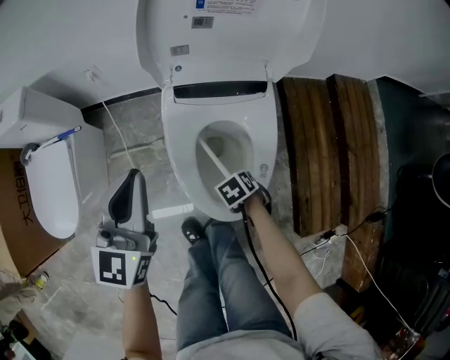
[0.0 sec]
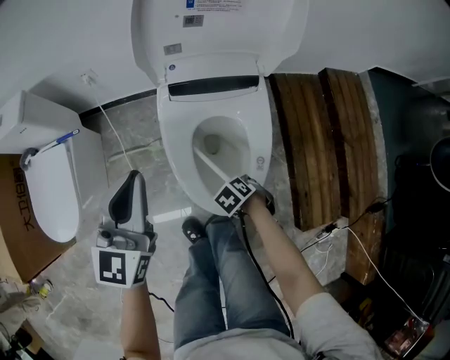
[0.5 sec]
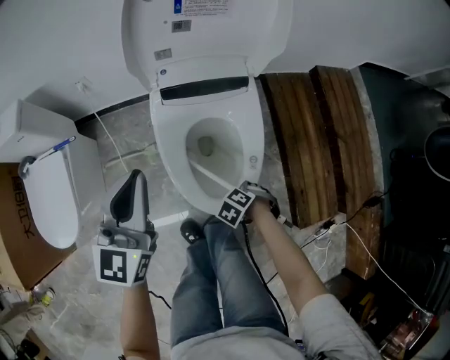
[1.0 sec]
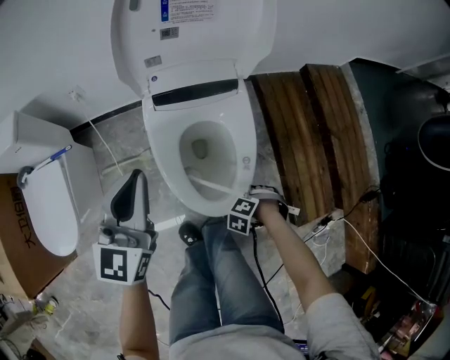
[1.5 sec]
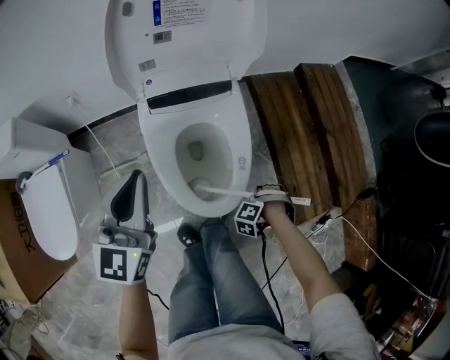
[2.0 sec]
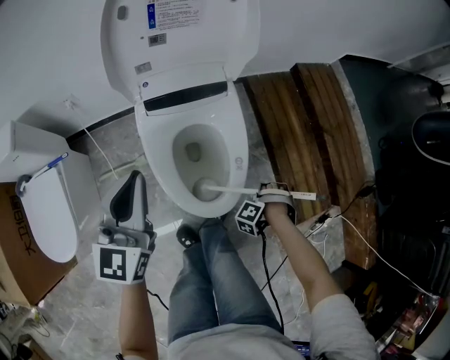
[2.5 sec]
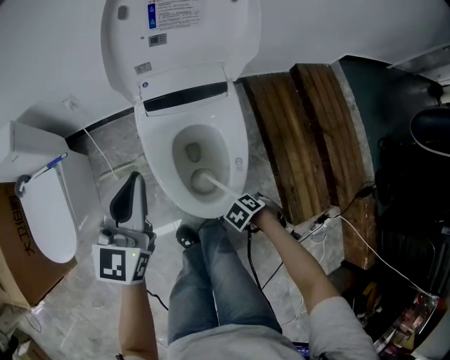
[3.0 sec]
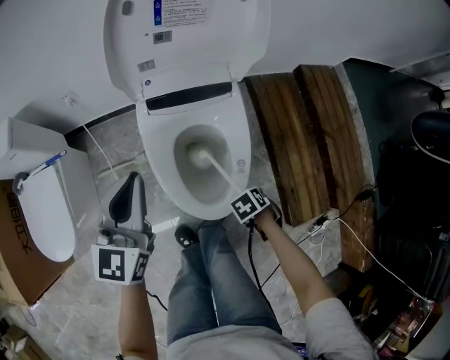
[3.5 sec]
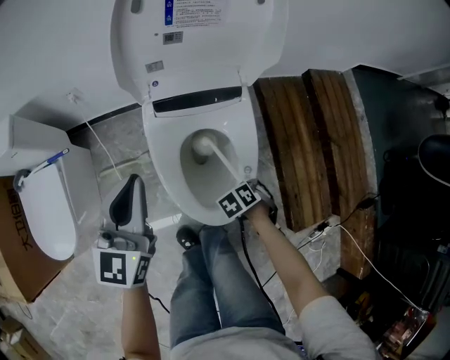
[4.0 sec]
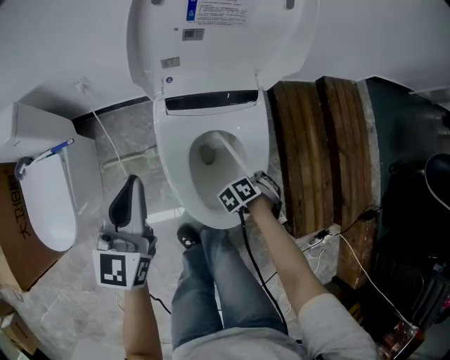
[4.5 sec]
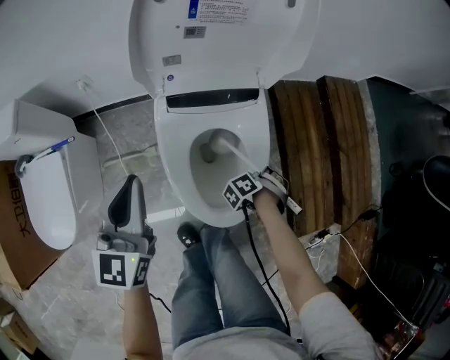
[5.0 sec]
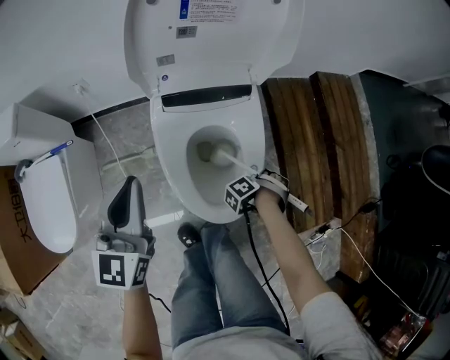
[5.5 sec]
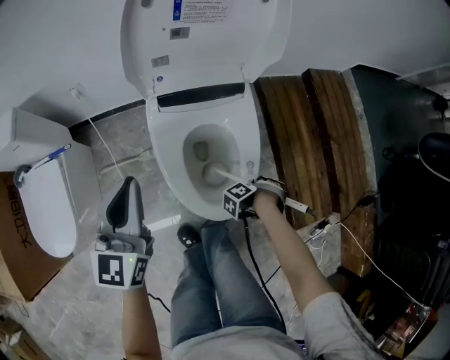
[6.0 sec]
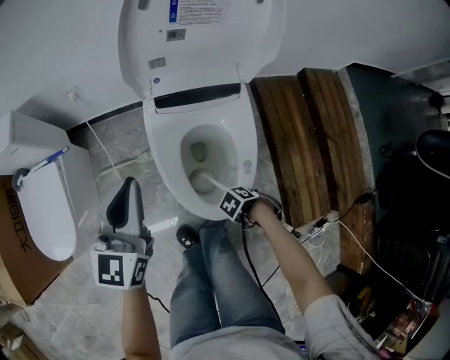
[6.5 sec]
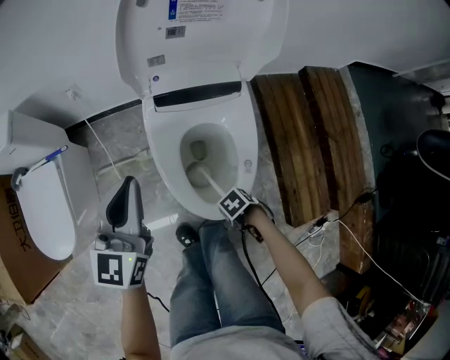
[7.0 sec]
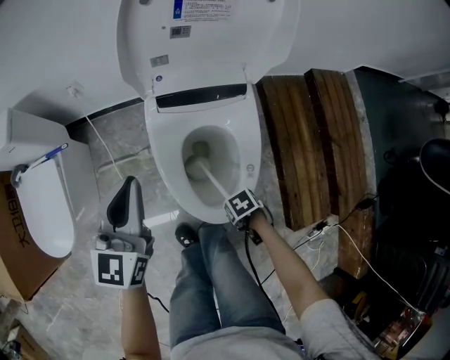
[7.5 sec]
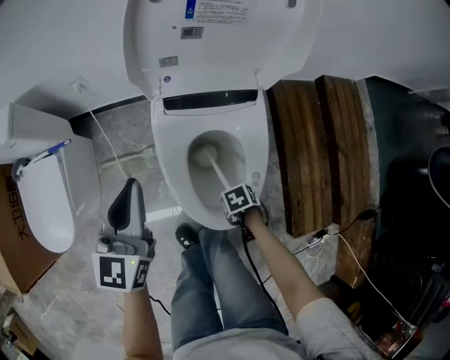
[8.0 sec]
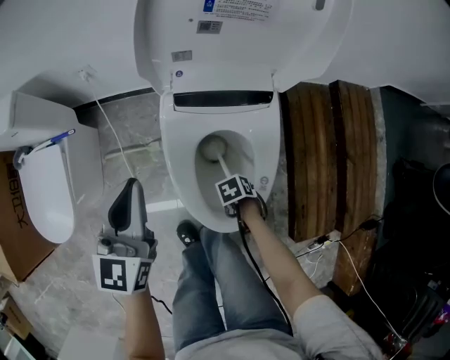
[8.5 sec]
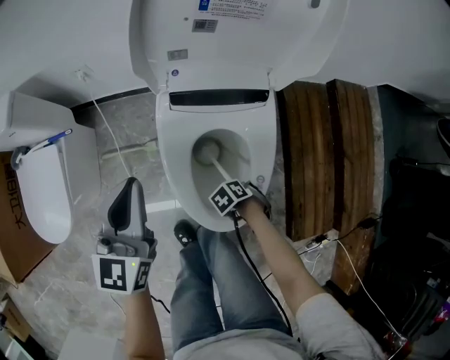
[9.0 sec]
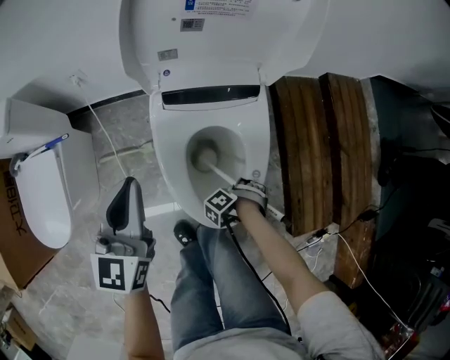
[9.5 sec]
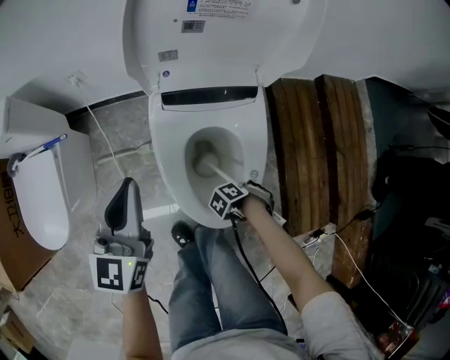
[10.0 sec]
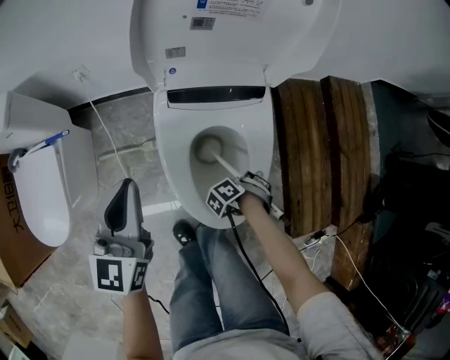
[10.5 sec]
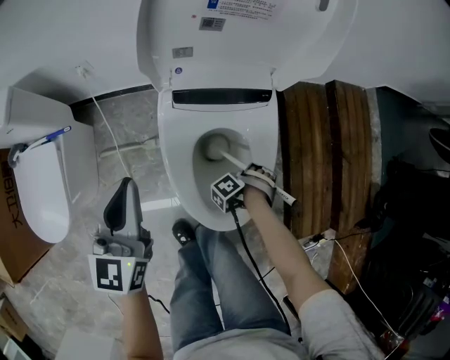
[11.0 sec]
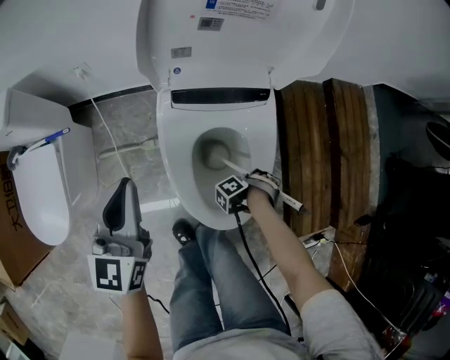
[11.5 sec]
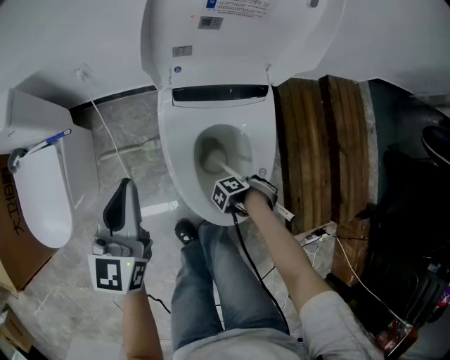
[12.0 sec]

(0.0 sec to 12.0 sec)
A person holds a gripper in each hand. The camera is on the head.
0.0 sec - 2.0 sec: The left gripper changes place by some 5 cm.

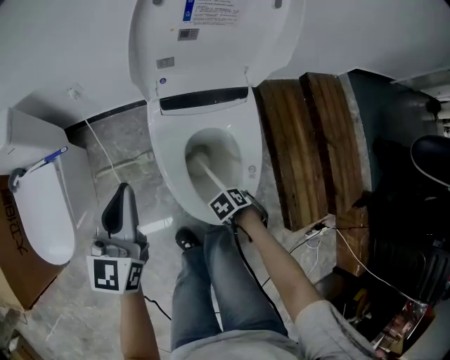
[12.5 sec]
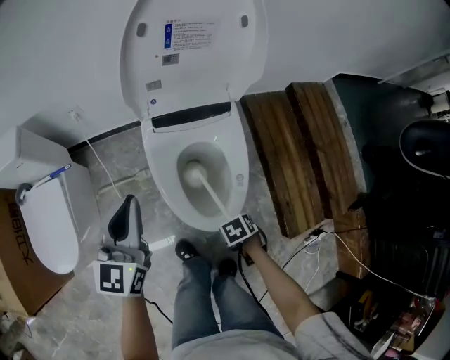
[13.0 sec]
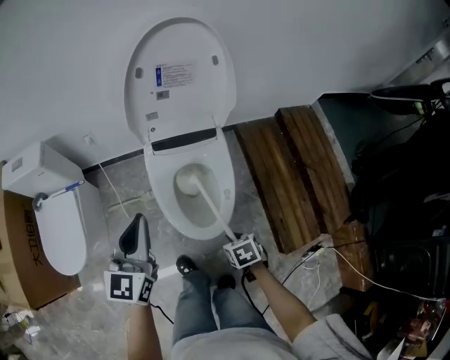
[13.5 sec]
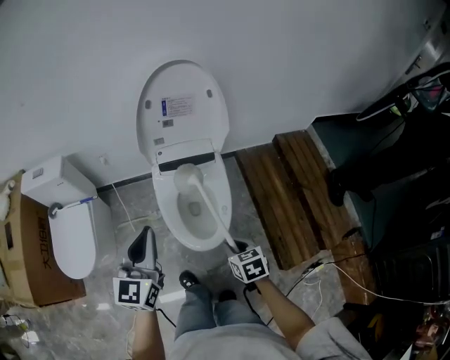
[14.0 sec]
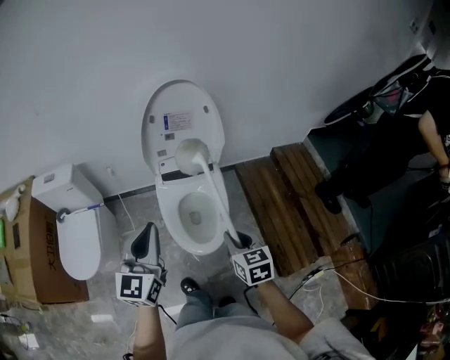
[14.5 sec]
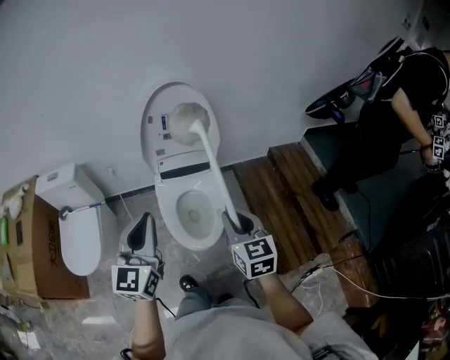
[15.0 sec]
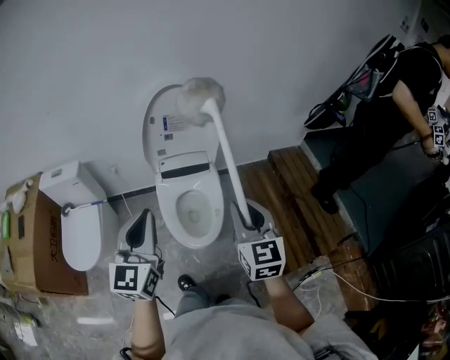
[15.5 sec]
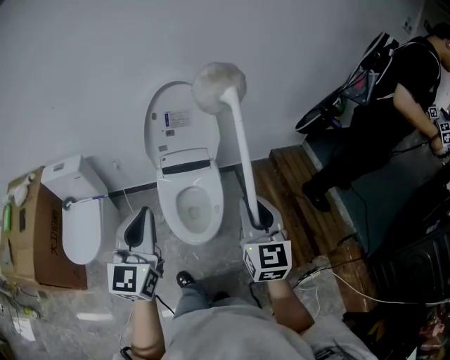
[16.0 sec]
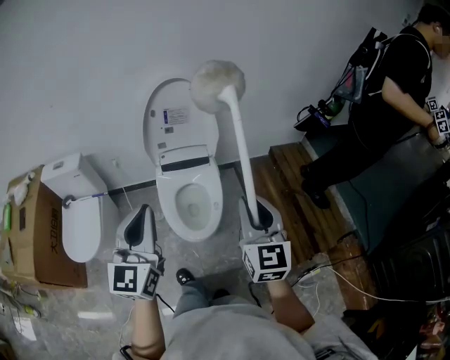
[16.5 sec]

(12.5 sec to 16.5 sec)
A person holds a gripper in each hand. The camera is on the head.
12.5 sec - 14.5 sec: The left gripper moves upward, roughly 25 cm.
14.5 sec - 16.5 sec: The left gripper shifts by some 15 cm.

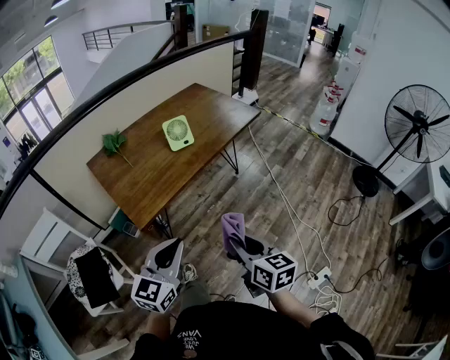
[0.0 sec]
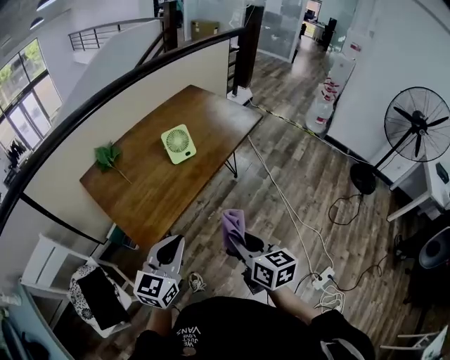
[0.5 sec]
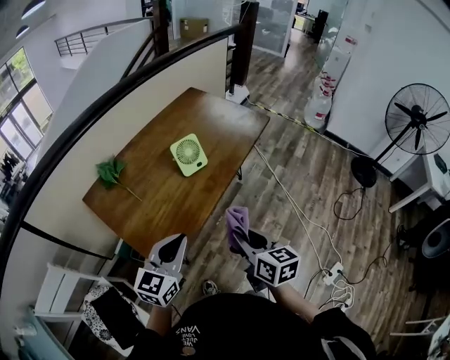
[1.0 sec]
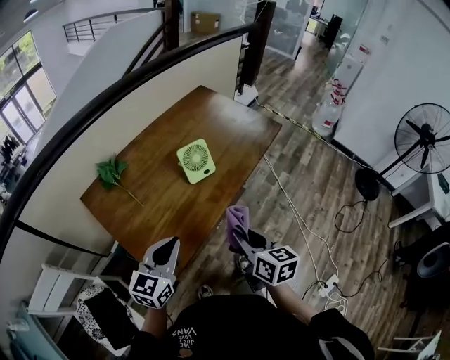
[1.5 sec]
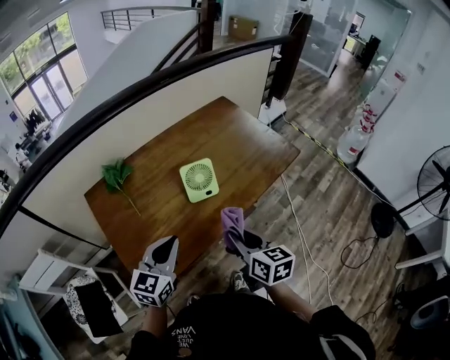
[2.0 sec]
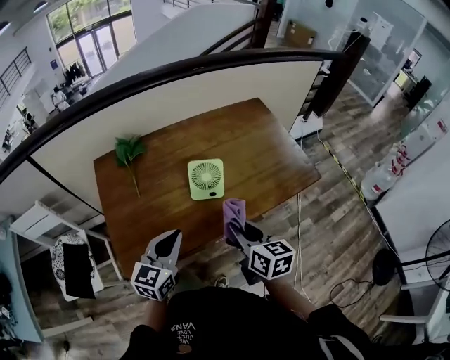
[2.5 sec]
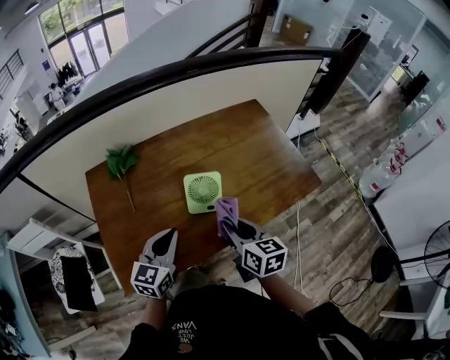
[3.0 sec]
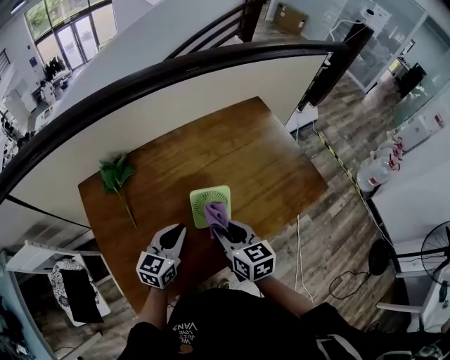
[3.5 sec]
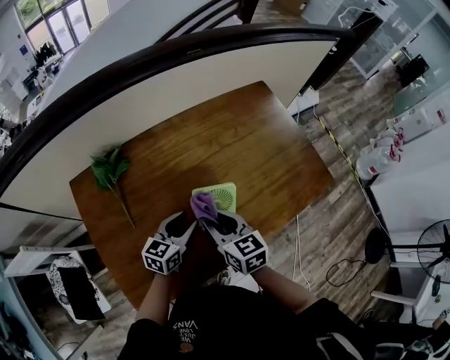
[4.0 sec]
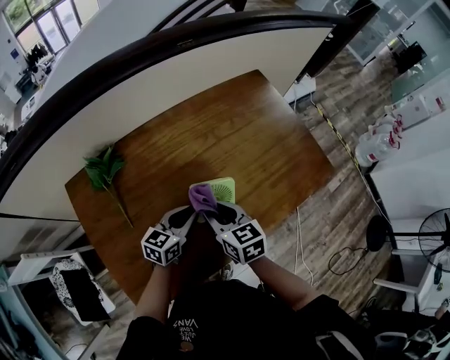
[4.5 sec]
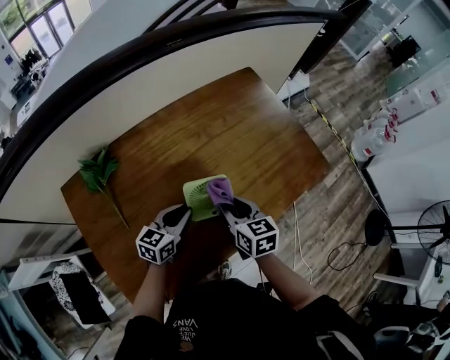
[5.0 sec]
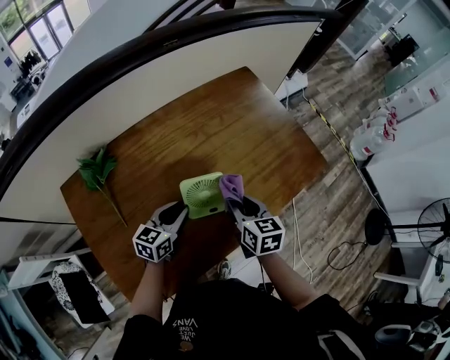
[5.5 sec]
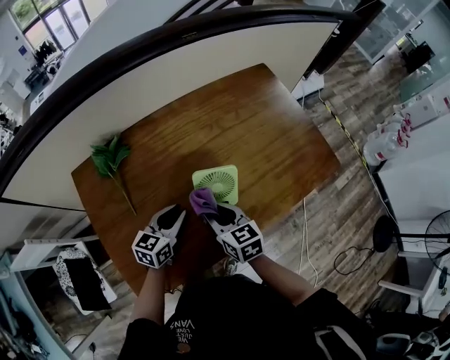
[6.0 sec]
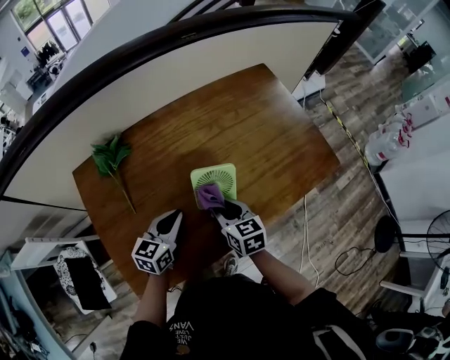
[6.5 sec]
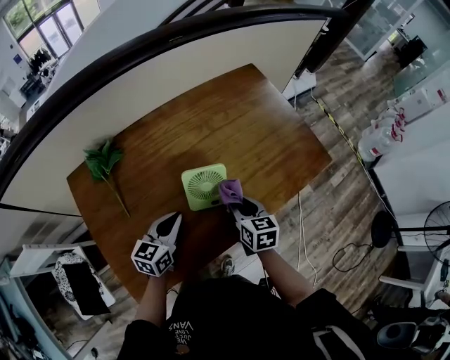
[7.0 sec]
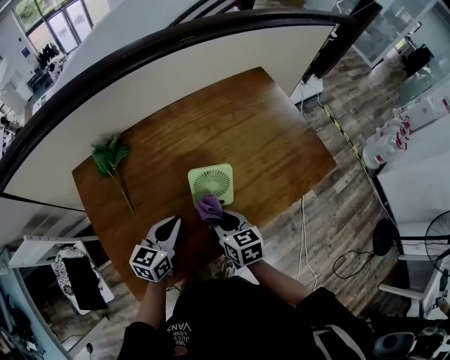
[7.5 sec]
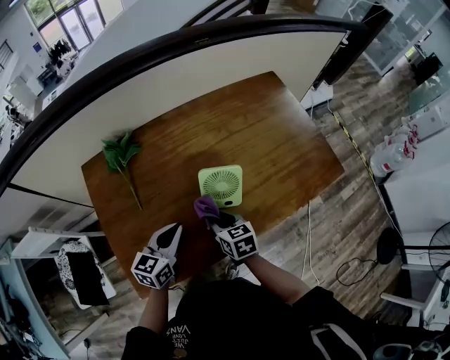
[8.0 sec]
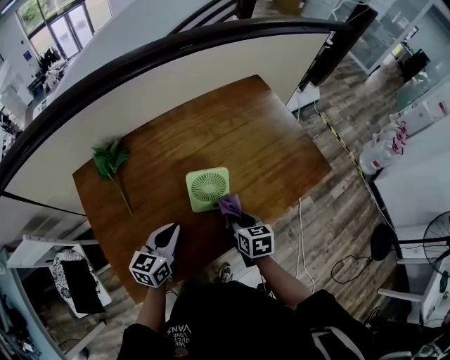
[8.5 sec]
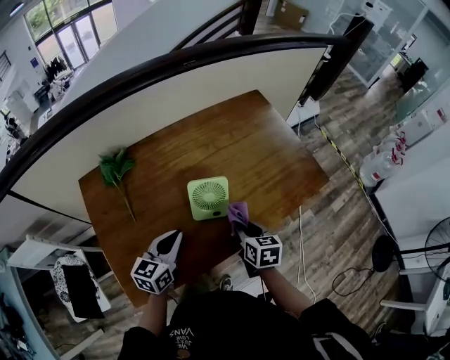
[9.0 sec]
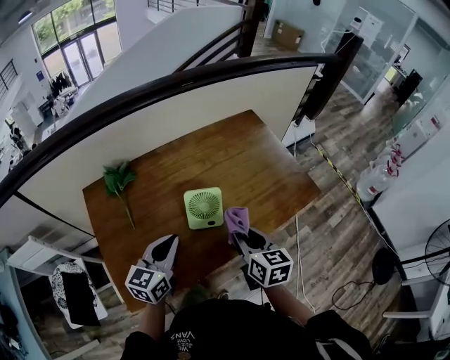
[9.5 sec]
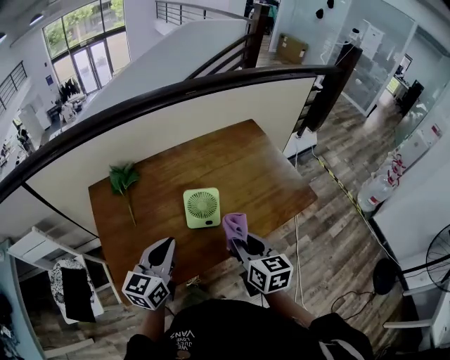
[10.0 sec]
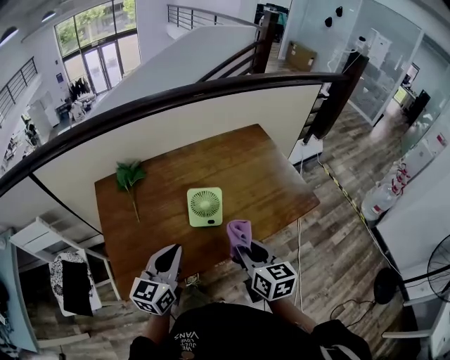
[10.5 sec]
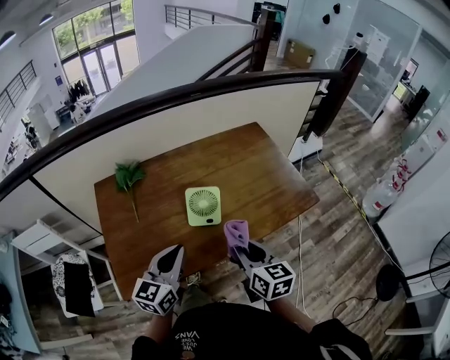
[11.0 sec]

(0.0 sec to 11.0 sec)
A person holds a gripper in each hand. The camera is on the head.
0.0 sec - 2.0 sec: Both grippers travel together forward, about 35 cm.
2.0 sec - 3.5 sec: The left gripper travels forward and downward by approximately 20 cm, while the right gripper moves forward, roughly 20 cm.
3.5 sec - 5.5 sec: The left gripper travels downward and forward by some 10 cm; the right gripper travels to the right, forward and downward by about 10 cm.
5.5 sec - 7.5 sec: The left gripper is displaced backward by some 5 cm, while the right gripper swings left and right, about 10 cm each way, with 2 reversals.
7.5 sec - 9.0 sec: The right gripper shifts about 10 cm to the right.
9.0 sec - 11.0 sec: The grippers both shift upward and backward by about 15 cm. The right gripper turns by about 20 degrees.
